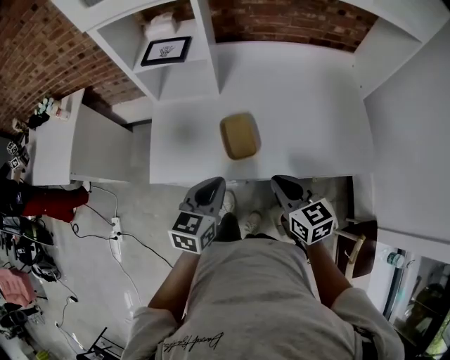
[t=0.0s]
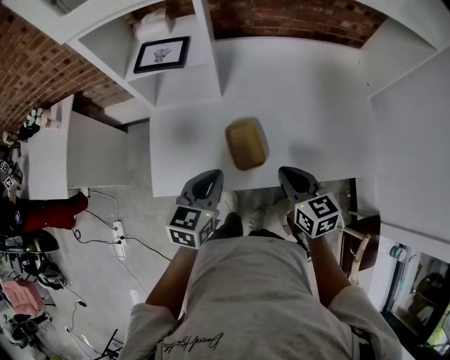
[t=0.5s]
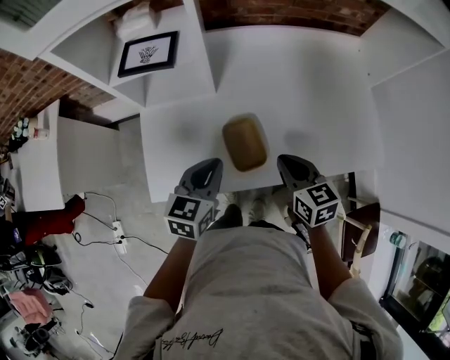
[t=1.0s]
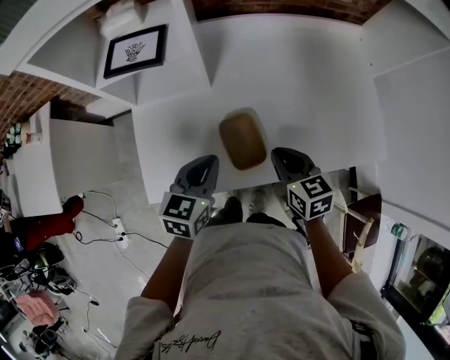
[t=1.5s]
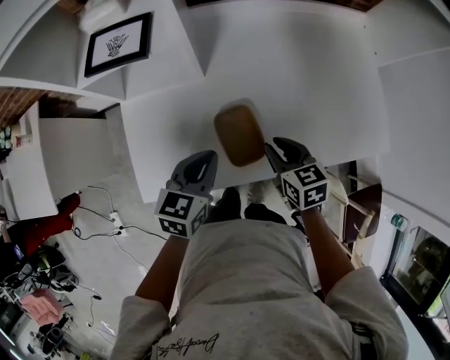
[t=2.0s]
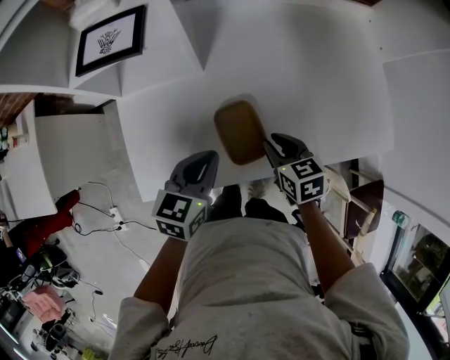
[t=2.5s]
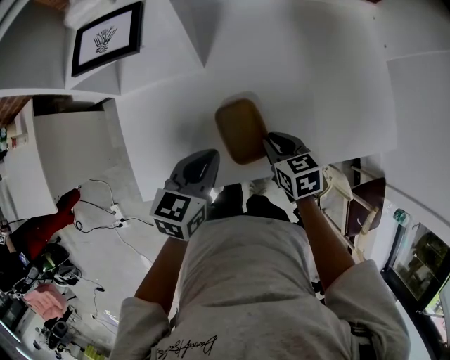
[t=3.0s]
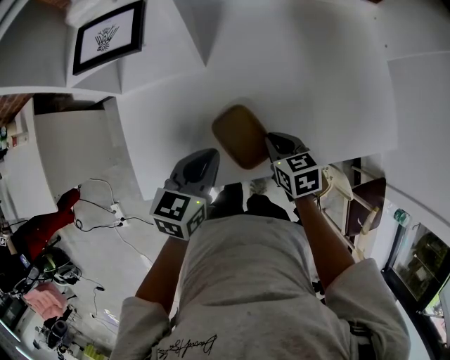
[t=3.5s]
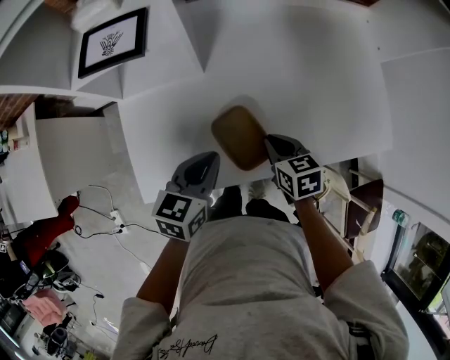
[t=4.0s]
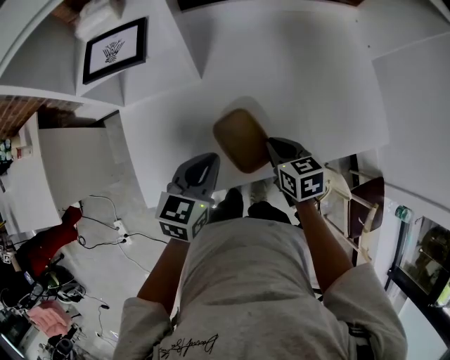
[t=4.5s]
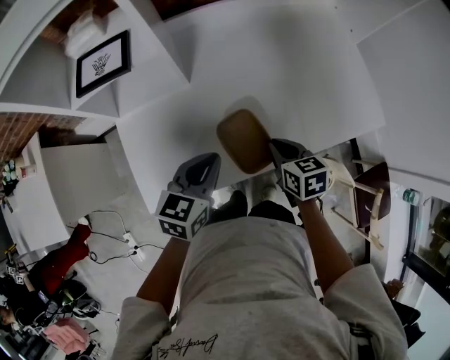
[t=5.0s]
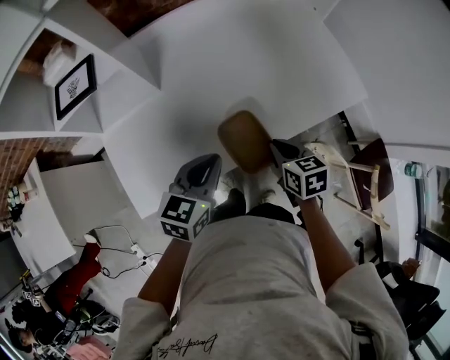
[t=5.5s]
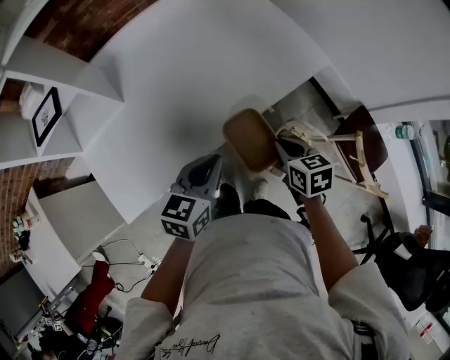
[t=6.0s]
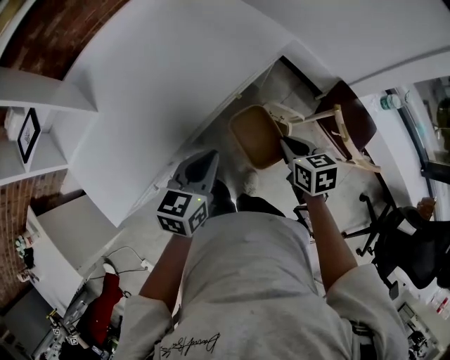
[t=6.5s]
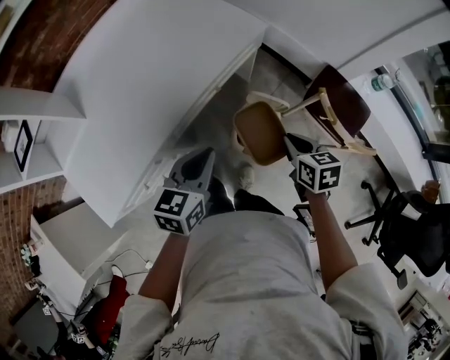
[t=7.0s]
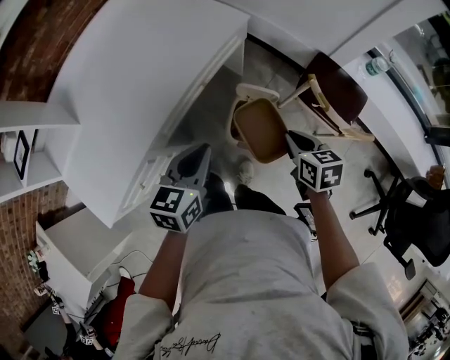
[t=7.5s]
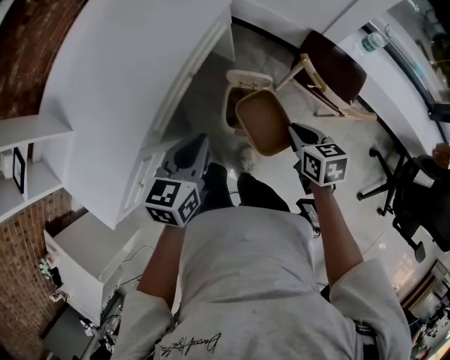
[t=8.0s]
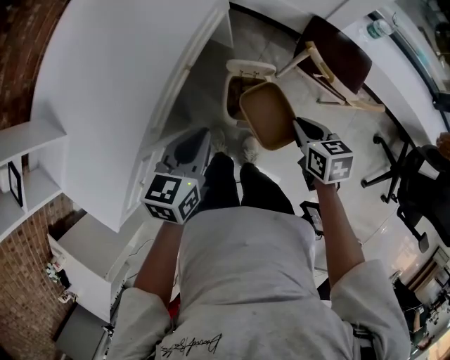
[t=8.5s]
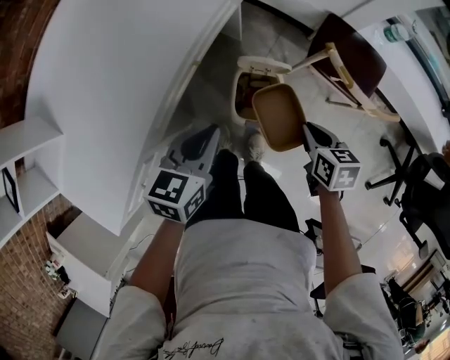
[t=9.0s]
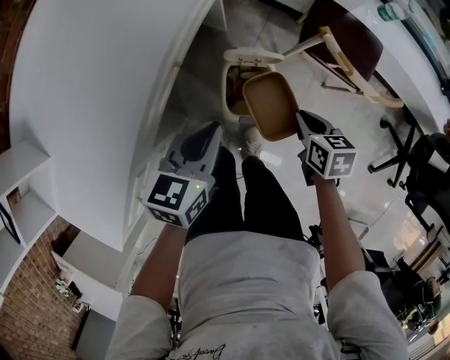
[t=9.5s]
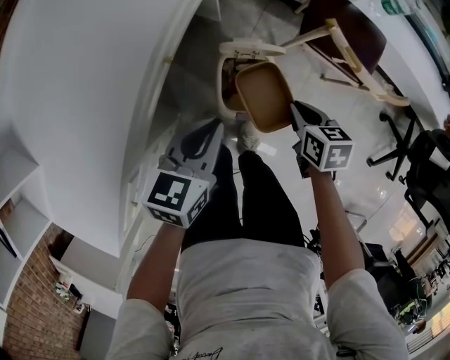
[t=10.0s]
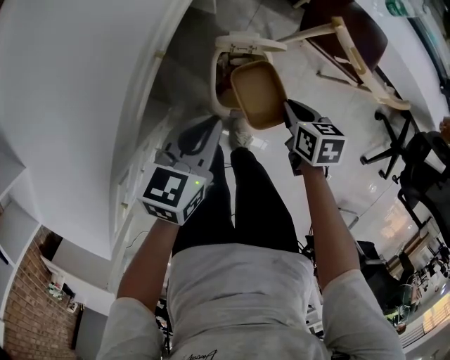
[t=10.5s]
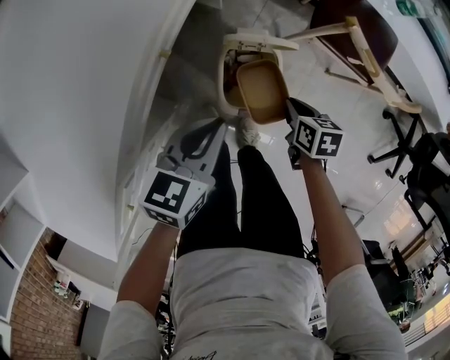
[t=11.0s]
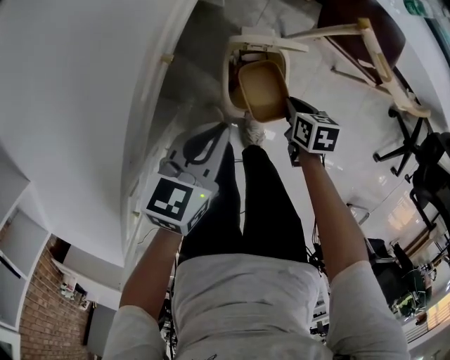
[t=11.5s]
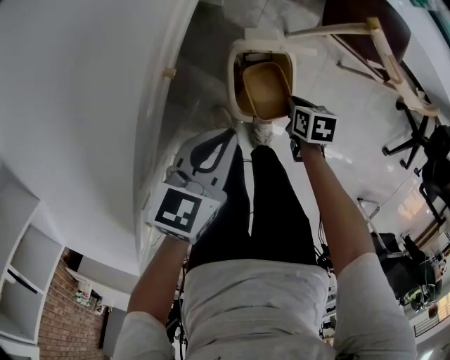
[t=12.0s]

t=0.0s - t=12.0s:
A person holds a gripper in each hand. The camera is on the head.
t=0.0s - t=2.0s: Both grippers move forward and downward, roughly 20 cm.
t=2.0s - t=4.0s: The grippers stay close to where they were, moving slightly.
t=4.0s - t=6.0s: The right gripper ends up approximately 30 cm from where it was, and turns by about 30 degrees. The left gripper ends up approximately 25 cm from where it was, and swivels some 30 degrees.
t=6.0s - t=8.0s: The left gripper travels to the right by some 20 cm; the right gripper shifts roughly 30 cm to the right and backward, and changes its angle by some 30 degrees.
t=8.0s - t=10.0s: The right gripper is displaced downward by roughly 15 cm. Meanwhile the left gripper heads downward and forward, covering approximately 15 cm.
t=10.0s - t=12.0s: The left gripper is displaced downward by approximately 10 cm. The right gripper travels downward by about 20 cm.

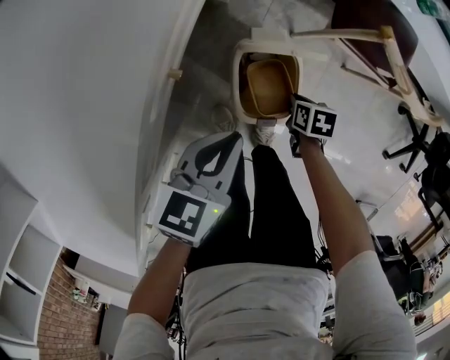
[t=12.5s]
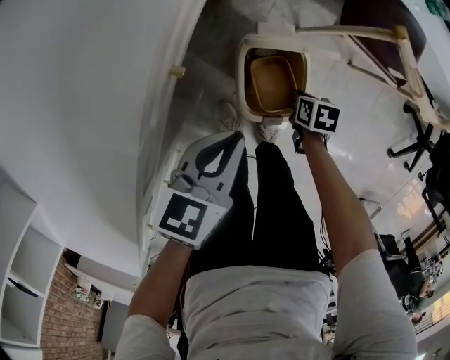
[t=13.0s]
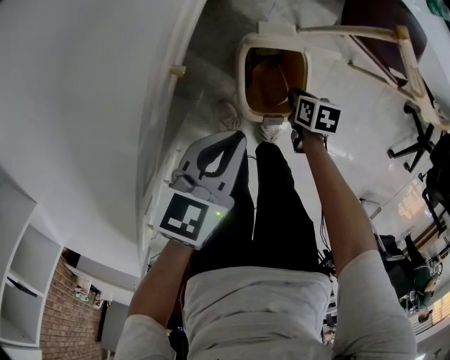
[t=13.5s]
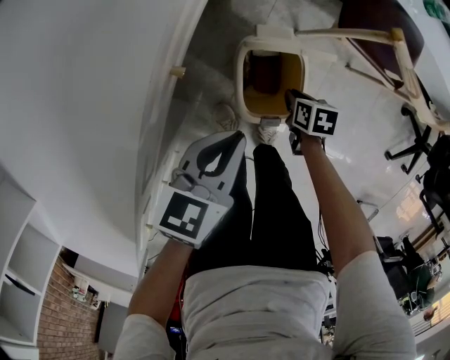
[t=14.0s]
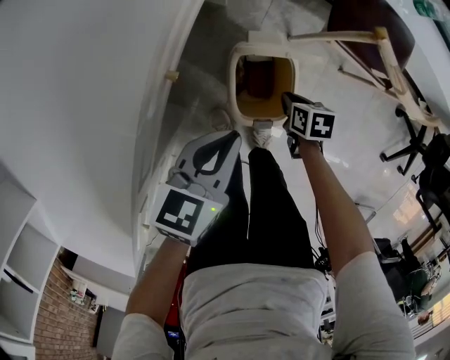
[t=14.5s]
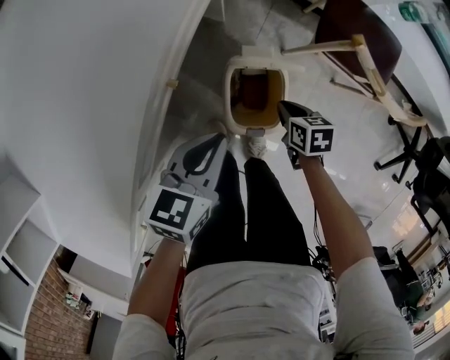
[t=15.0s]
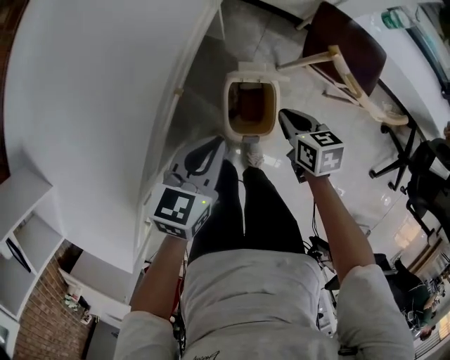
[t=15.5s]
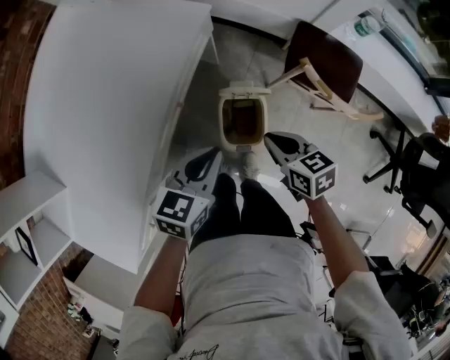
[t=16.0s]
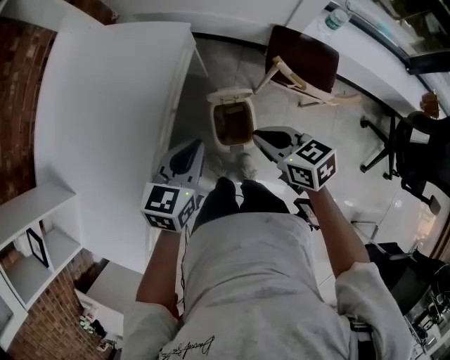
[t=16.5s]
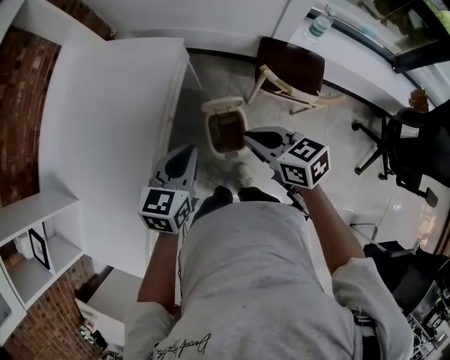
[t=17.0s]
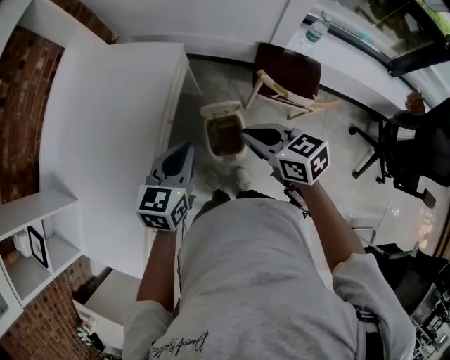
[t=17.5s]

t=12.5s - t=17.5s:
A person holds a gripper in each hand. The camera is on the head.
t=12.5s - t=15.0s: The right gripper is displaced upward by some 10 cm.
t=15.0s - t=17.5s: The right gripper heads upward, covering roughly 40 cm, and points its fingers about 30 degrees further upward. The left gripper is displaced upward by roughly 25 cm.

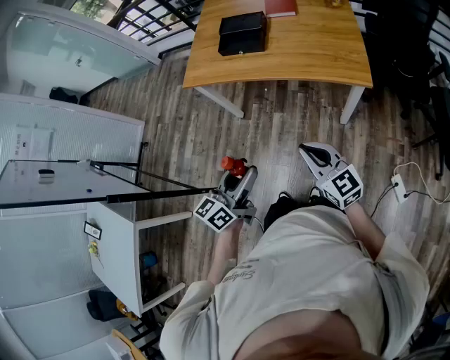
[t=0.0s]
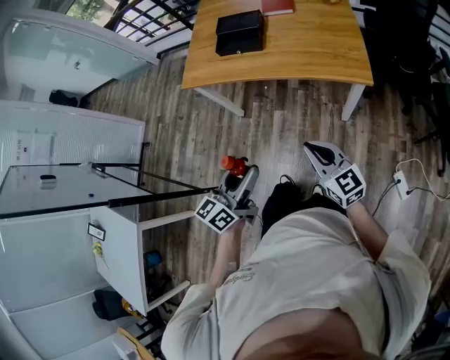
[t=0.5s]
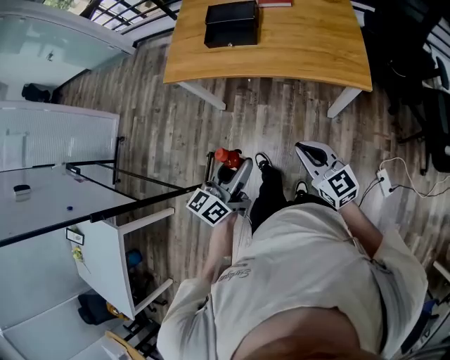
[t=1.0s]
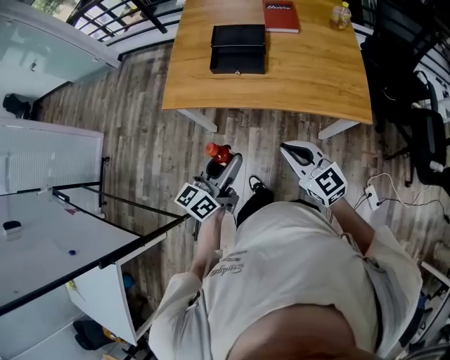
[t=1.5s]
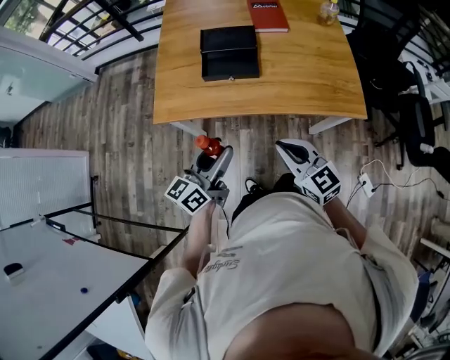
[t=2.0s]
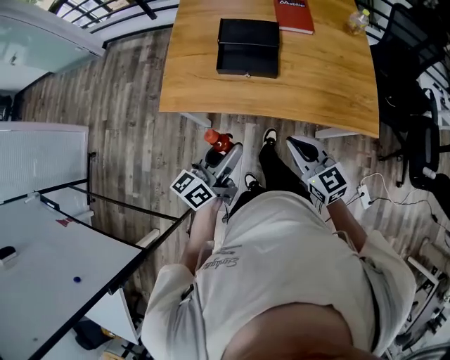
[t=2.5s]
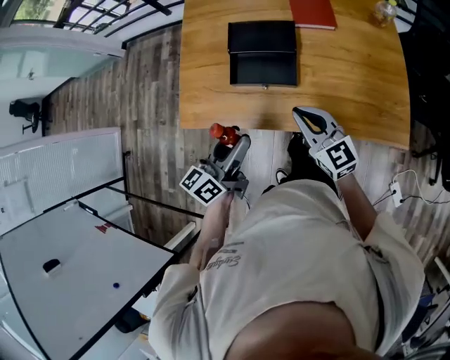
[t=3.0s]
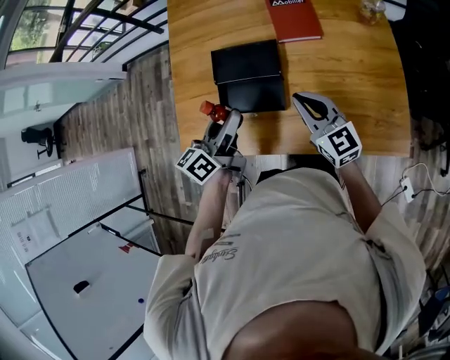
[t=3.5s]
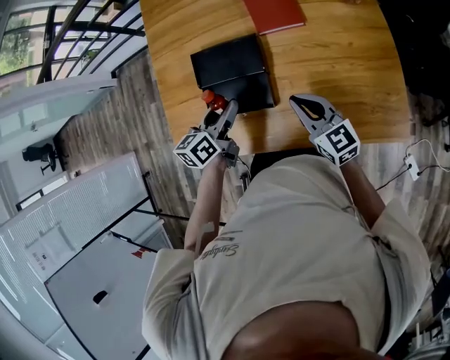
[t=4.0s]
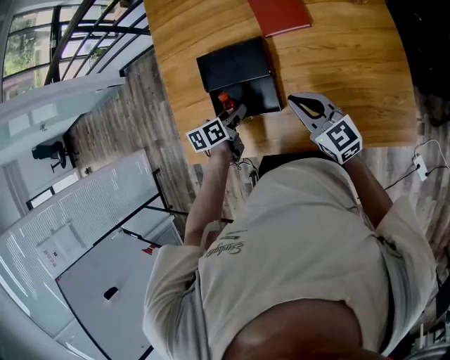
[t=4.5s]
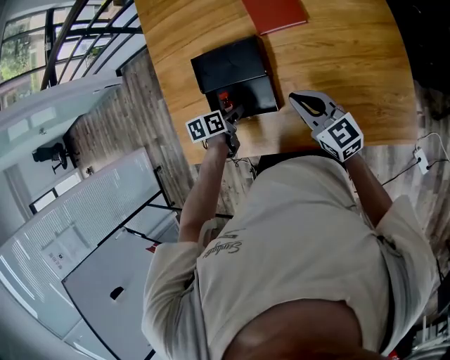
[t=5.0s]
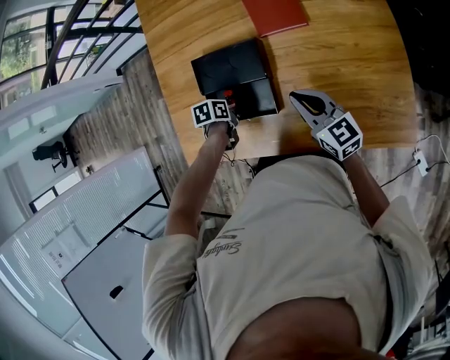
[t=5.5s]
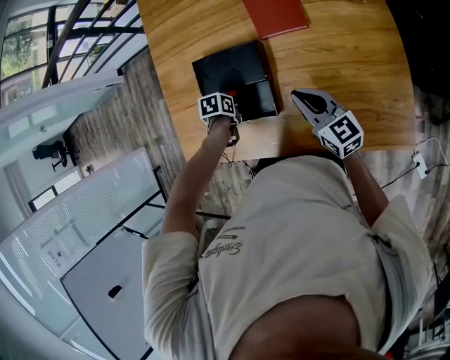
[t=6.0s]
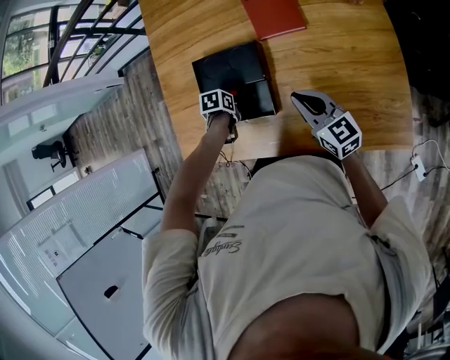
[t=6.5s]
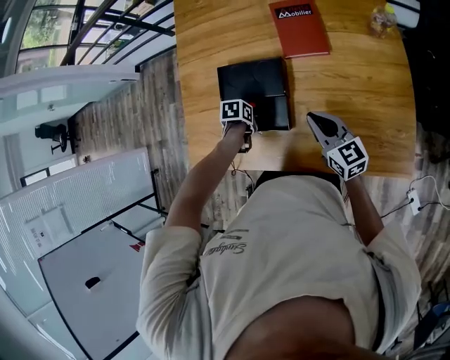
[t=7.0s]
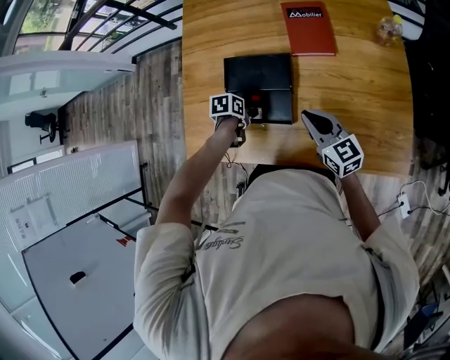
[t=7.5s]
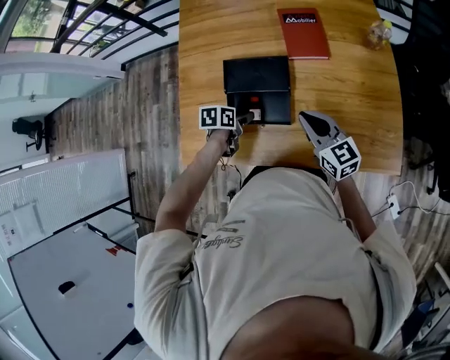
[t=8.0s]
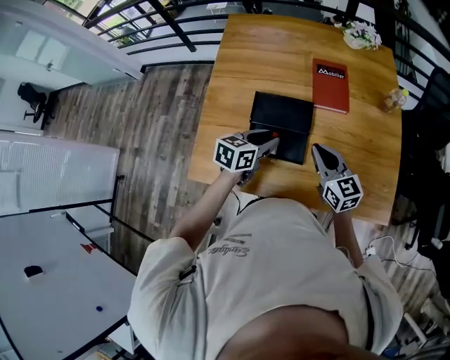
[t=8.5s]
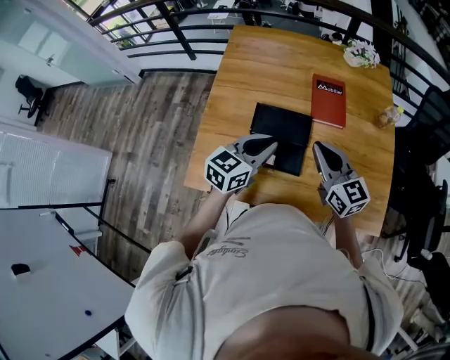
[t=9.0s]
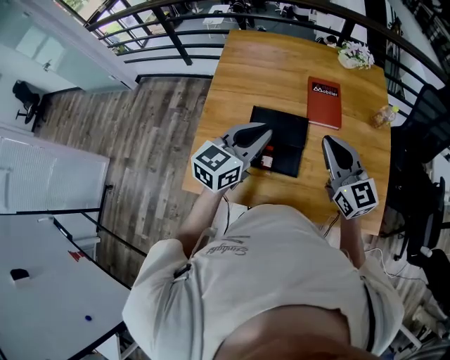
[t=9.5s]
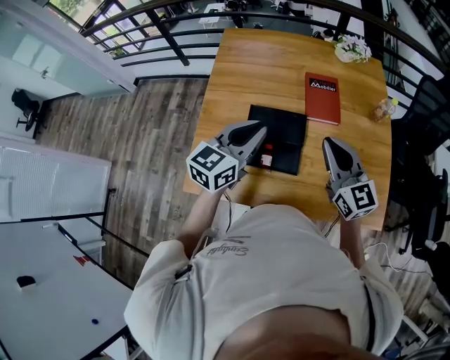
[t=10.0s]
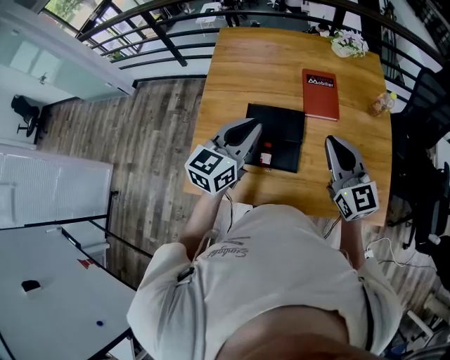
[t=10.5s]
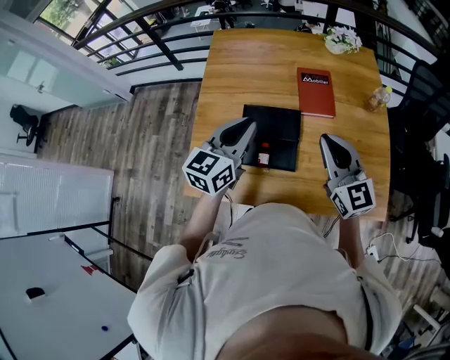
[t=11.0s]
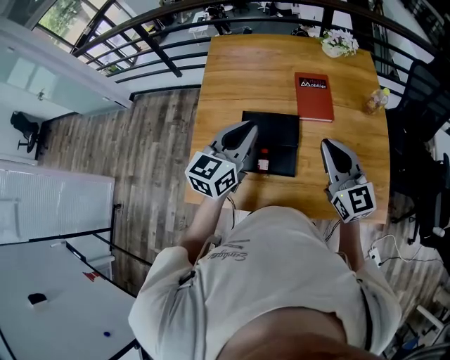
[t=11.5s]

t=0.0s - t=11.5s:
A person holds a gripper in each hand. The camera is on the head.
t=0.0s - t=2.0s: The two grippers go some 30 cm forward and to the left.
t=2.0s - t=4.0s: Both grippers move forward, some 35 cm. The left gripper changes its angle by roughly 30 degrees.
t=4.0s - t=6.0s: The left gripper shifts about 20 cm downward, and points its fingers about 50 degrees further downward. Meanwhile the right gripper shifts by approximately 5 cm.
t=6.0s - t=7.5s: The right gripper moves approximately 5 cm.
t=7.5s - t=9.5s: The left gripper goes some 35 cm upward, tilts its fingers approximately 60 degrees upward, and closes its fingers. The right gripper heads upward, covering roughly 20 cm, and changes its angle by approximately 20 degrees.
t=9.5s - t=11.5s: The grippers make only small movements.
